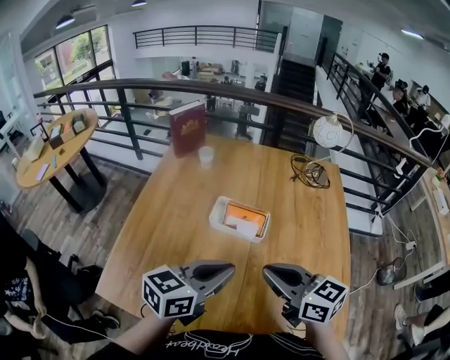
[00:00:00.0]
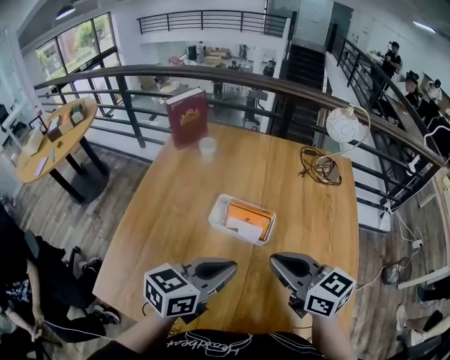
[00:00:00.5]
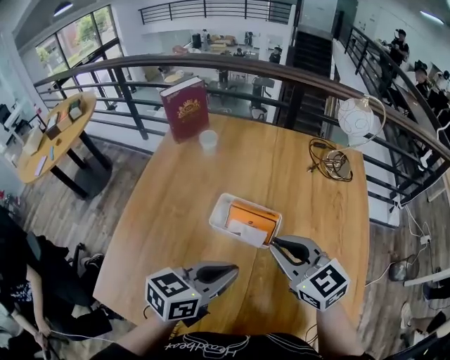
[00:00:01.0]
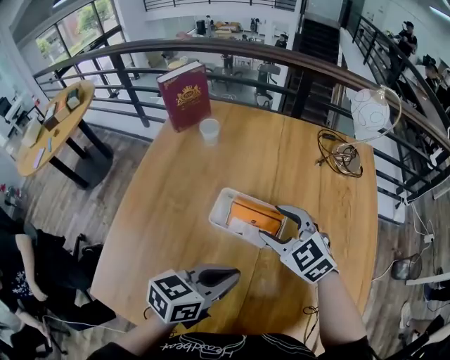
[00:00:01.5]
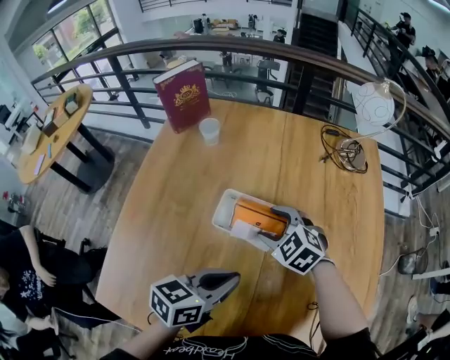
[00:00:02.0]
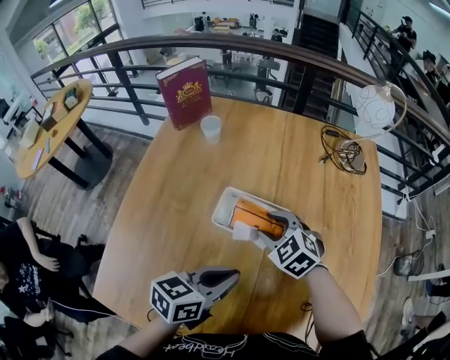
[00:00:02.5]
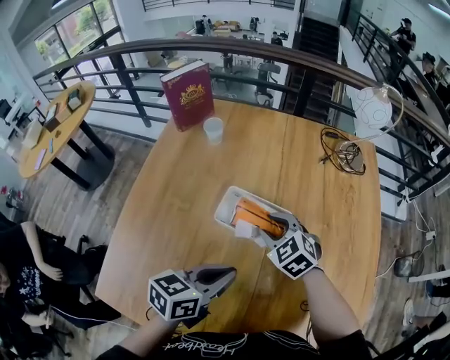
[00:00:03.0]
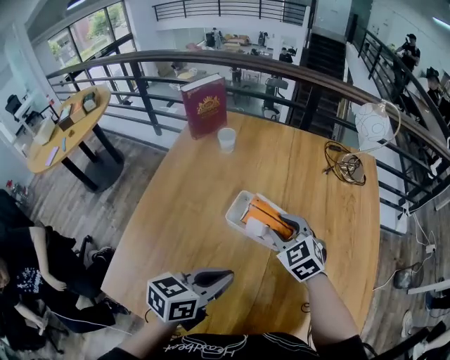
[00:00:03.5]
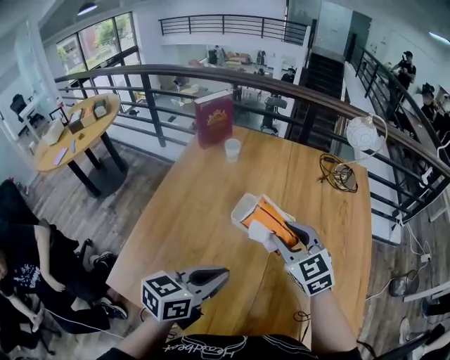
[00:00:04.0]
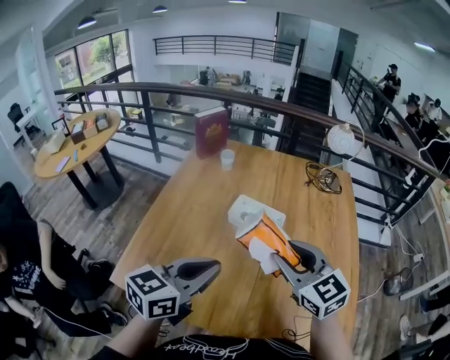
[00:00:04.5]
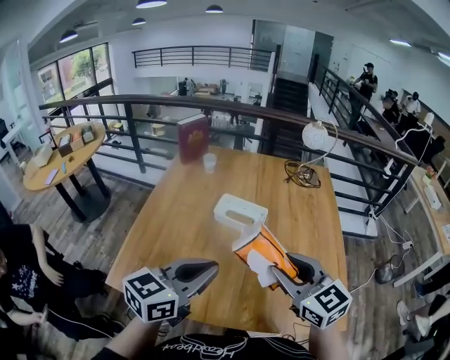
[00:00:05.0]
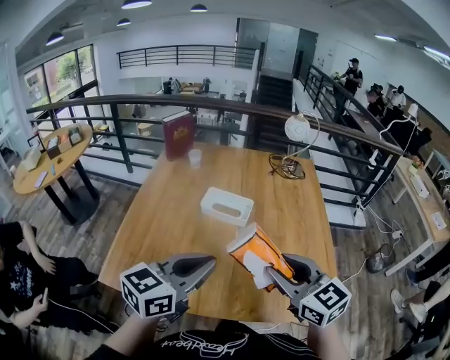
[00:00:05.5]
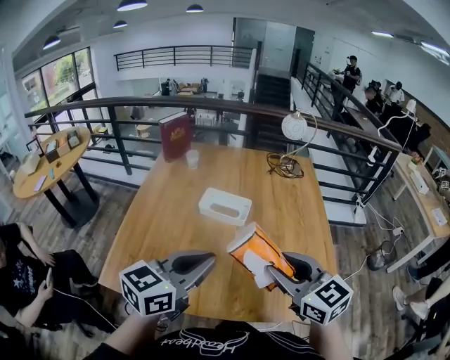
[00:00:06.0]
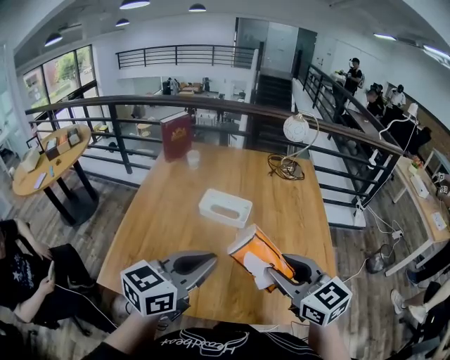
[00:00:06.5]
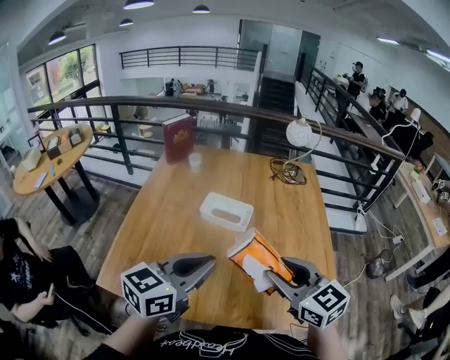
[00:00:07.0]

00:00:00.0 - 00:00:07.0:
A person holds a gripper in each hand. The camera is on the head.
00:00:00.0 - 00:00:02.0: The left gripper goes about 20 cm downward and forward; the right gripper moves forward and downward, about 30 cm, points its fingers some 30 degrees further downward, and opens its fingers.
00:00:02.0 - 00:00:03.5: The left gripper moves roughly 5 cm; the right gripper changes place by approximately 5 cm, and closes its fingers.
00:00:03.5 - 00:00:05.0: The right gripper heads backward and upward, covering some 40 cm, and turns by some 30 degrees, while the left gripper shifts approximately 25 cm backward and upward, and changes its angle by approximately 20 degrees.
00:00:05.0 - 00:00:07.0: The grippers move only a little.
